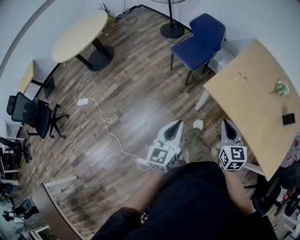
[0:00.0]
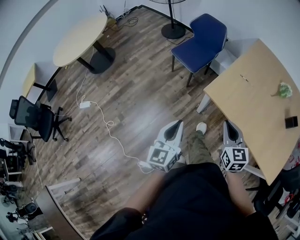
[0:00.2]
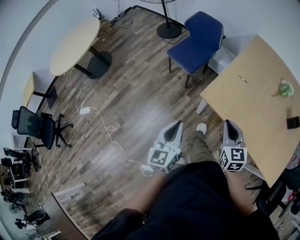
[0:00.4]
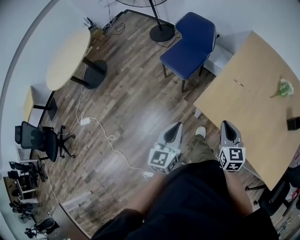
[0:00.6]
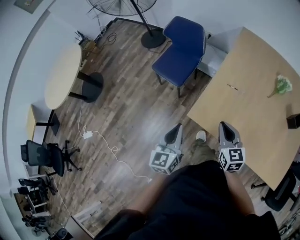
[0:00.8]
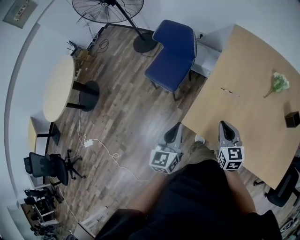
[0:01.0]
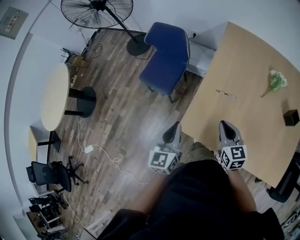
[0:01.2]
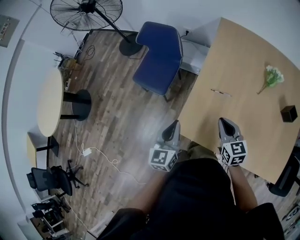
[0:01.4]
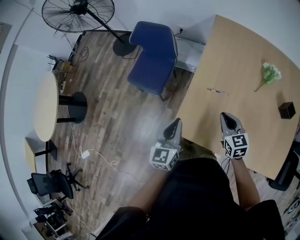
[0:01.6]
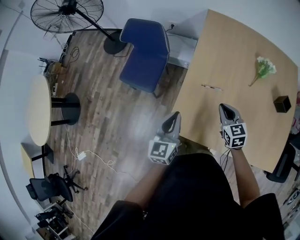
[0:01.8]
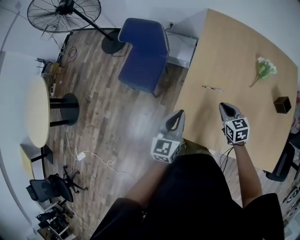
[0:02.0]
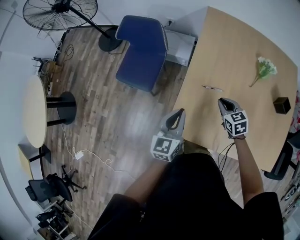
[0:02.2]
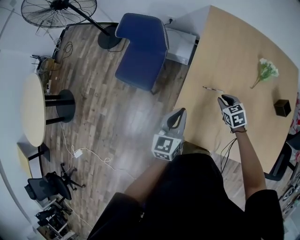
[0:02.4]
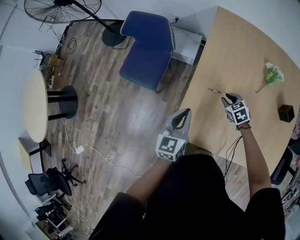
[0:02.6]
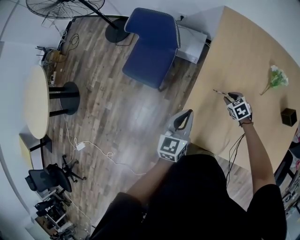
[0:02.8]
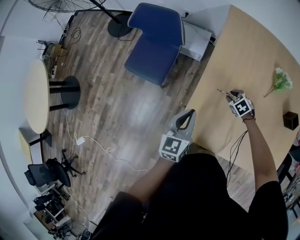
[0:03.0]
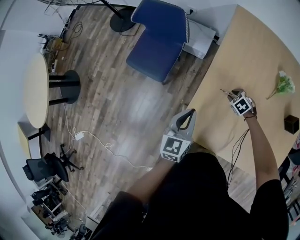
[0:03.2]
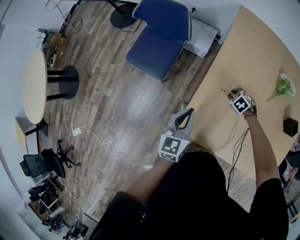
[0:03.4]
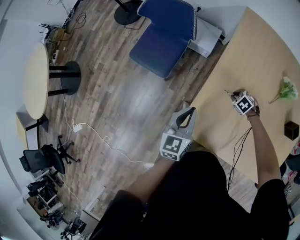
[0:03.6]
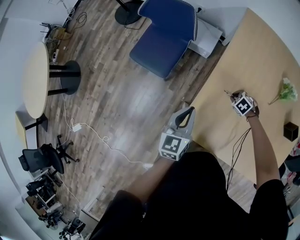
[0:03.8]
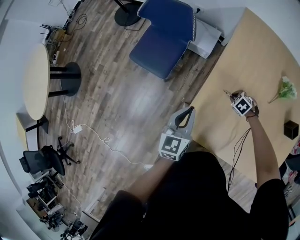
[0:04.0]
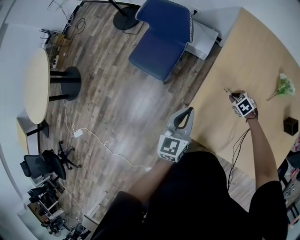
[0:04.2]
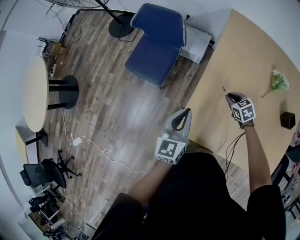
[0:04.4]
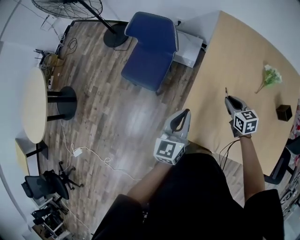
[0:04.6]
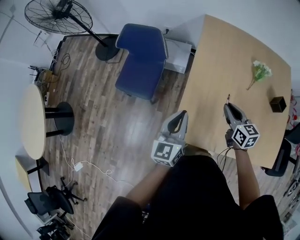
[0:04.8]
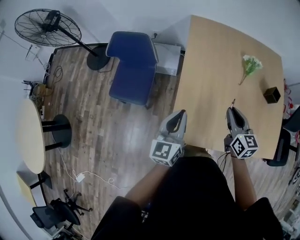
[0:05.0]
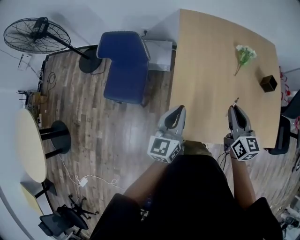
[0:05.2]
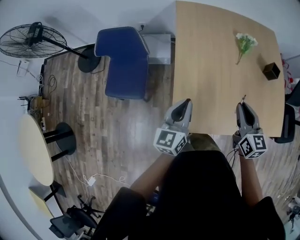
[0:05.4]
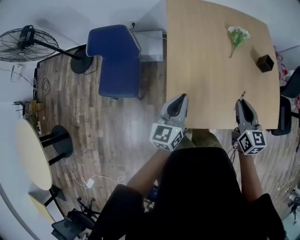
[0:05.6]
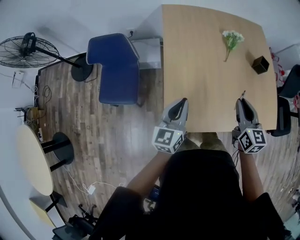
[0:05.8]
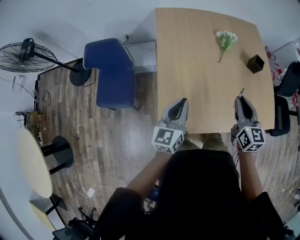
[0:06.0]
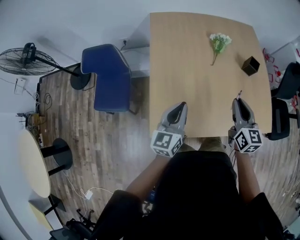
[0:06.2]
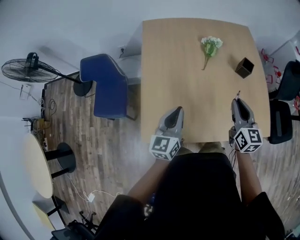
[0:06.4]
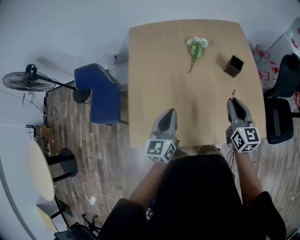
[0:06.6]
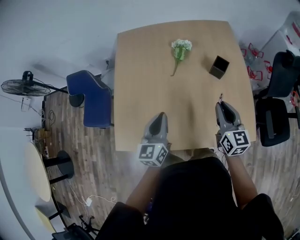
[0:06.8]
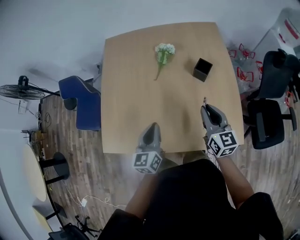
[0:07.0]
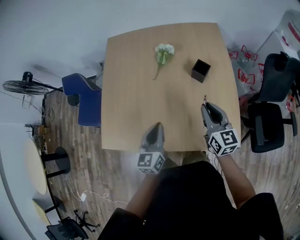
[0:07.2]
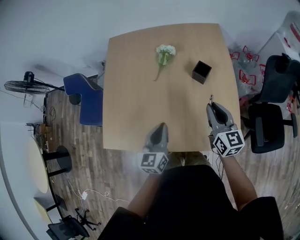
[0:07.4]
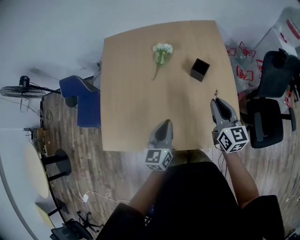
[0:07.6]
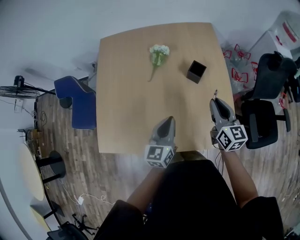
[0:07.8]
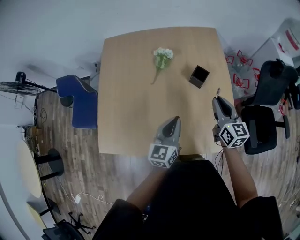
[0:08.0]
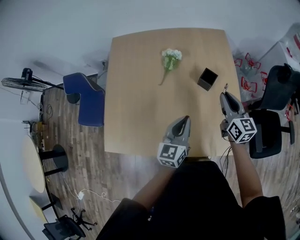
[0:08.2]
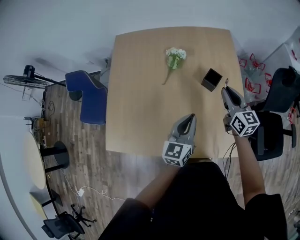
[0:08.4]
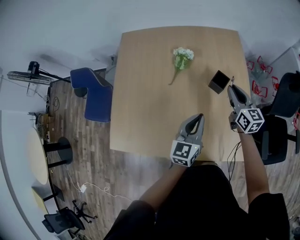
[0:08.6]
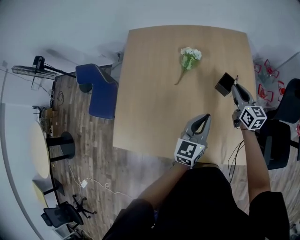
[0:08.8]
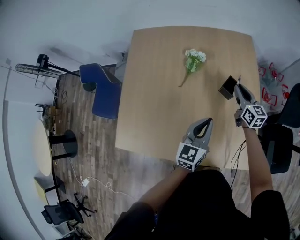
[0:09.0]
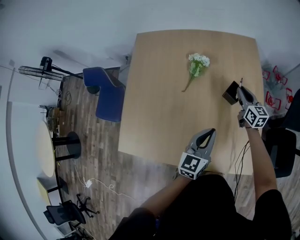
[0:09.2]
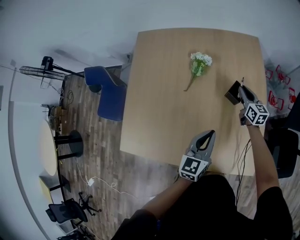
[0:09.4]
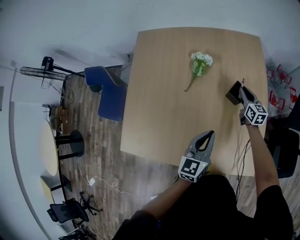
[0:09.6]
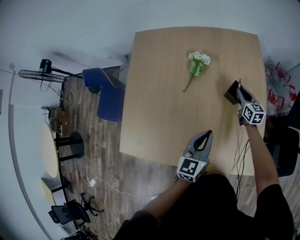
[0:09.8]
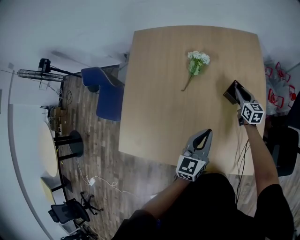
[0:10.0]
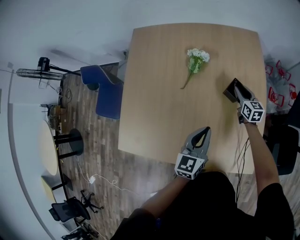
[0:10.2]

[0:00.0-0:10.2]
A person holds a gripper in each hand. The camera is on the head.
0:00.0 to 0:01.4: The two grippers travel together, forward and to the right, some 50 cm.
0:01.4 to 0:03.0: The right gripper moves downward and forward, about 30 cm, angles its fingers downward, by roughly 40 degrees, and opens up; the left gripper is displaced forward and downward by some 15 cm.
0:03.0 to 0:04.4: The left gripper moves roughly 5 cm; the right gripper goes roughly 10 cm upward.
0:04.4 to 0:05.8: The left gripper changes place by some 10 cm, and swivels approximately 30 degrees. The right gripper goes about 25 cm upward, and angles its fingers upward, by some 40 degrees.
0:05.8 to 0:07.2: Both grippers are carried to the right, approximately 50 cm.
0:07.2 to 0:08.8: The right gripper is displaced forward by approximately 20 cm, while the left gripper is displaced forward and to the right by approximately 15 cm.
0:08.8 to 0:10.2: The right gripper heads downward and forward, covering approximately 15 cm.

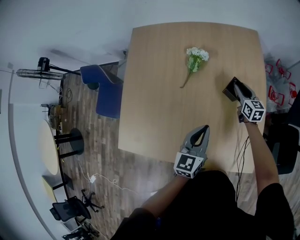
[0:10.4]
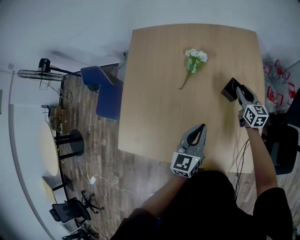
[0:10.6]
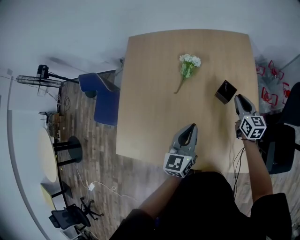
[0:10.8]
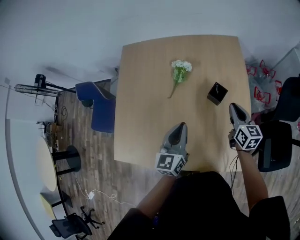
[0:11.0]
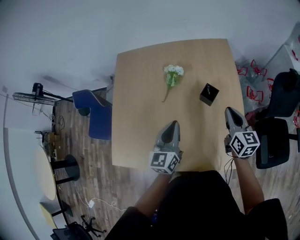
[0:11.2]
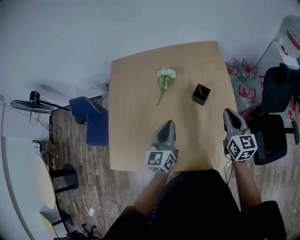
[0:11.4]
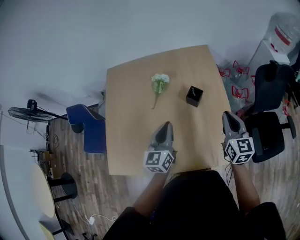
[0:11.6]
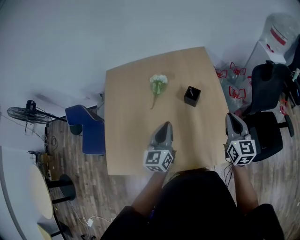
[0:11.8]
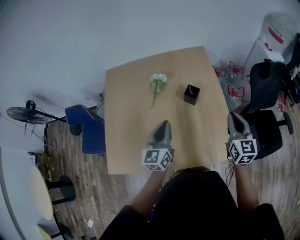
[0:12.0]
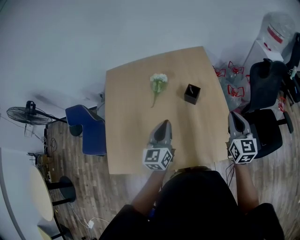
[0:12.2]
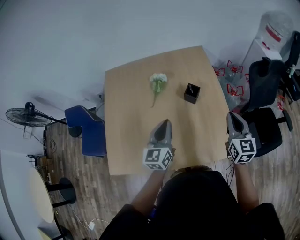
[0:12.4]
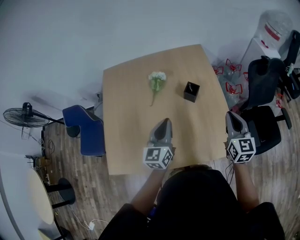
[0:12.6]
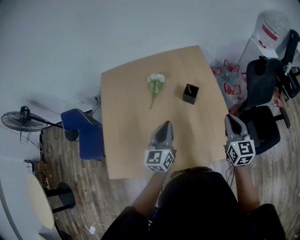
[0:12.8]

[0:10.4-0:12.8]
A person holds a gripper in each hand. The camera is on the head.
0:10.4 to 0:11.6: The left gripper shifts about 10 cm upward. Meanwhile the right gripper moves upward and backward, some 35 cm, rotates about 20 degrees, and closes.
0:11.6 to 0:12.8: The right gripper heads backward, covering approximately 5 cm.

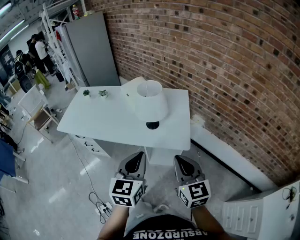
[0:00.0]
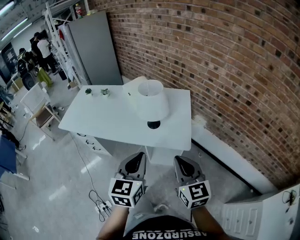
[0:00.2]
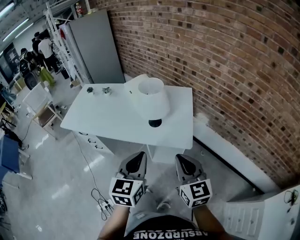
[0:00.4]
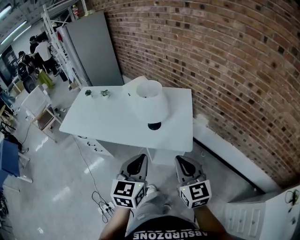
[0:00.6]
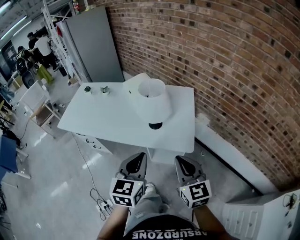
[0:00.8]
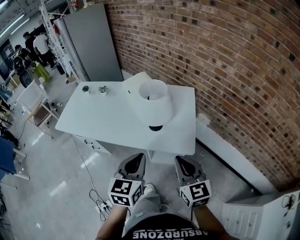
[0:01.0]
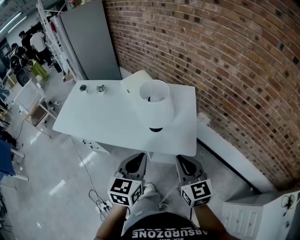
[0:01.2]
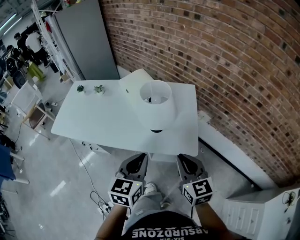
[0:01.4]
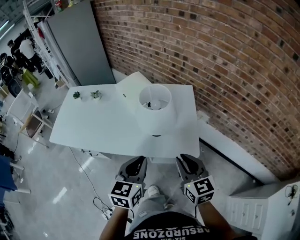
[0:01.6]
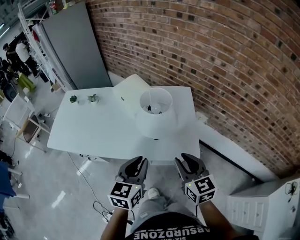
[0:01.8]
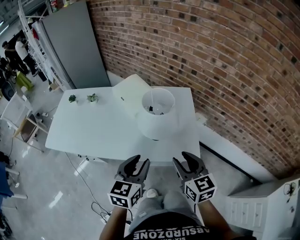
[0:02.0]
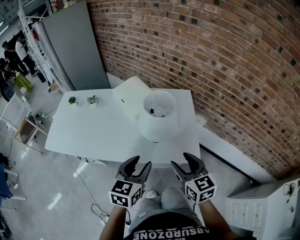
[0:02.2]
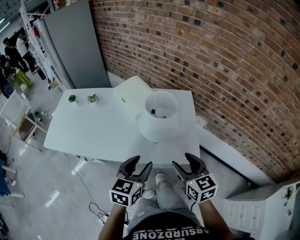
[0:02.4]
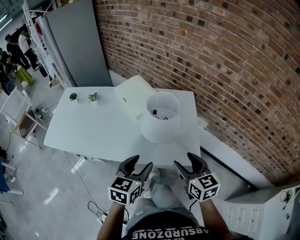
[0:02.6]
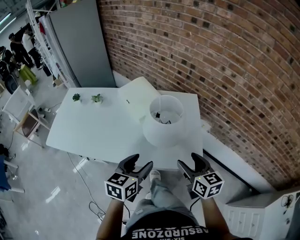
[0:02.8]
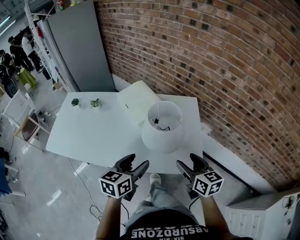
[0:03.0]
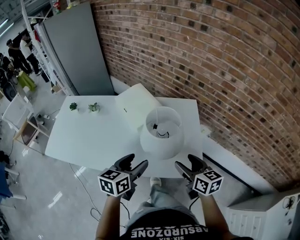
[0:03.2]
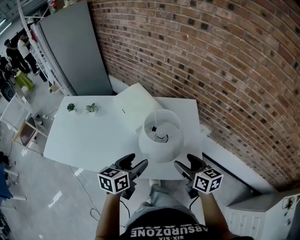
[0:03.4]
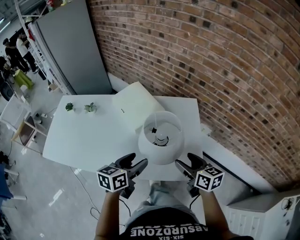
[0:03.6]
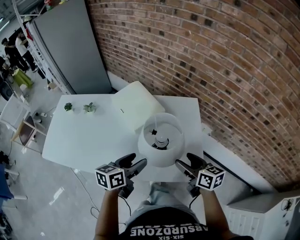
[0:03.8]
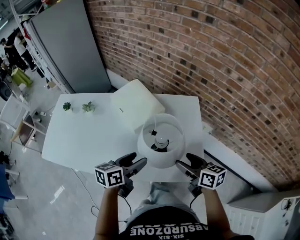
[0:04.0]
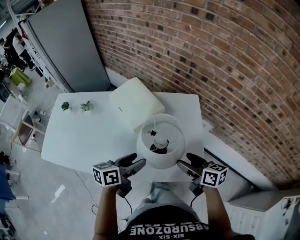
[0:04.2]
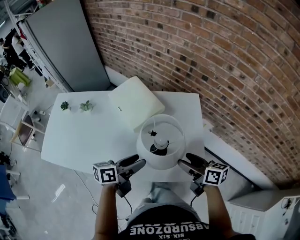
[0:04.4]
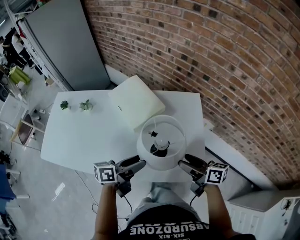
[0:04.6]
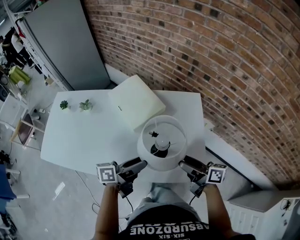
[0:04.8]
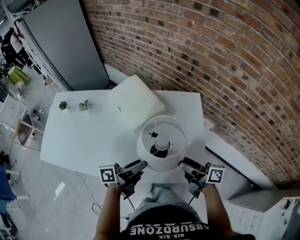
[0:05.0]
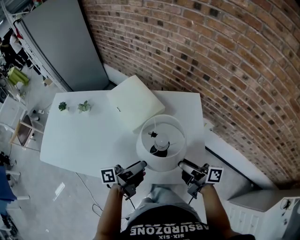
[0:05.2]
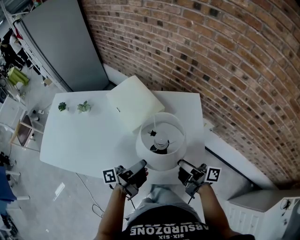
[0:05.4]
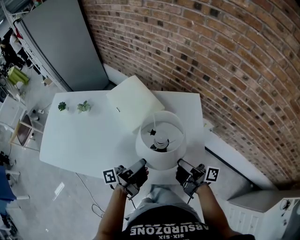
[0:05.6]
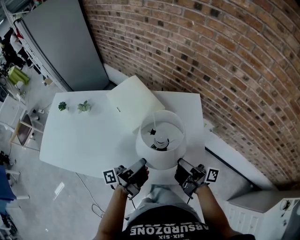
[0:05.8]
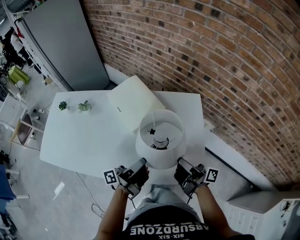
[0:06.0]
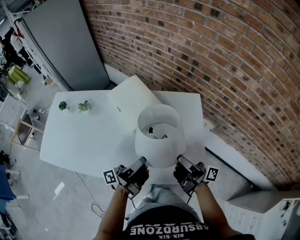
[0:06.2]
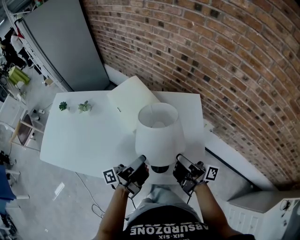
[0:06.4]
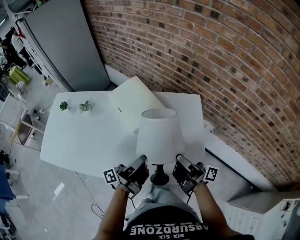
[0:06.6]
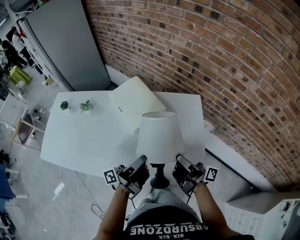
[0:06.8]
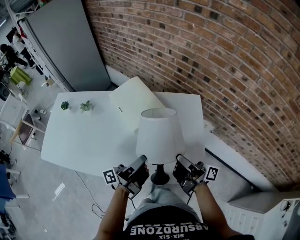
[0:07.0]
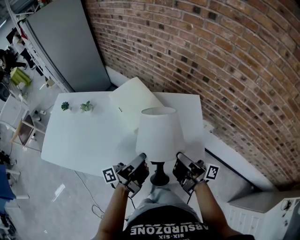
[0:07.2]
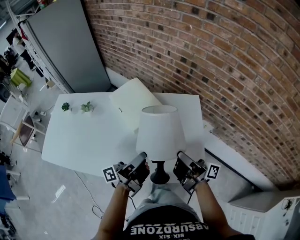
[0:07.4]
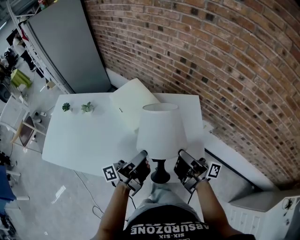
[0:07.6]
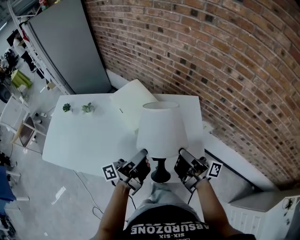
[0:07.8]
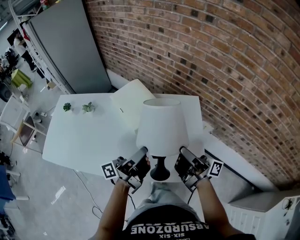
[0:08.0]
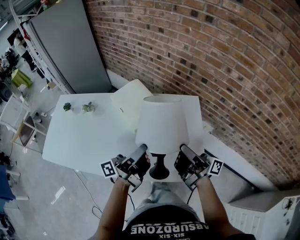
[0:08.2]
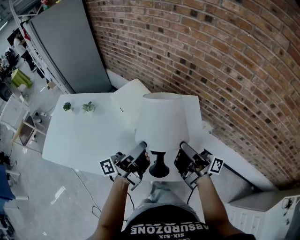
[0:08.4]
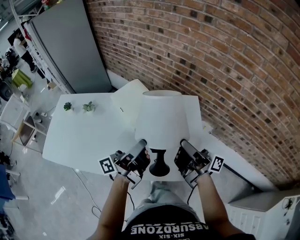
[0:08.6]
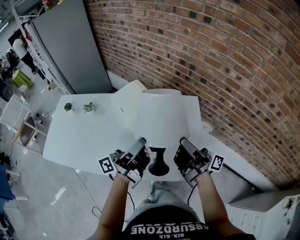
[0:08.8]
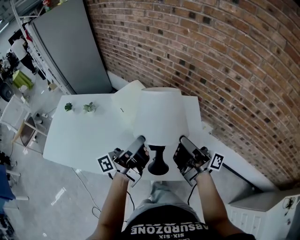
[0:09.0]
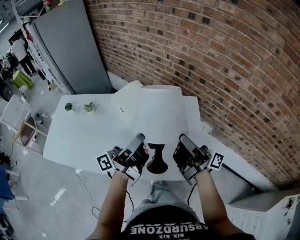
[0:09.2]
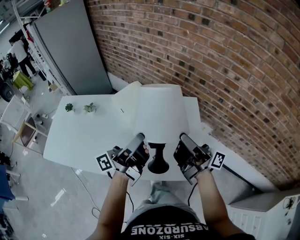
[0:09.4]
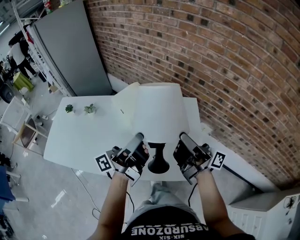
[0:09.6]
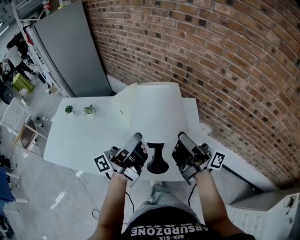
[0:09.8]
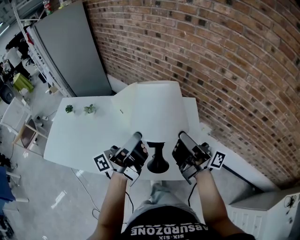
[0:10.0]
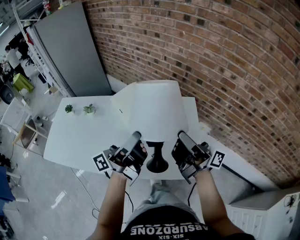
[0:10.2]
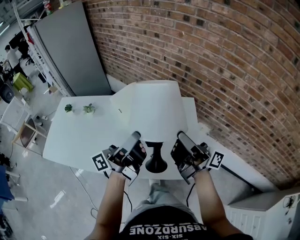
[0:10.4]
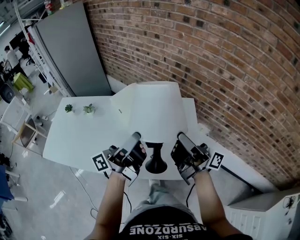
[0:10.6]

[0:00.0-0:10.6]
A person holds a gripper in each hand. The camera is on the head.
0:00.0 to 0:01.6: Both grippers move forward and downward, approximately 15 cm.
0:01.6 to 0:03.0: The right gripper goes roughly 10 cm forward, and opens its fingers, while the left gripper heads forward and to the left, covering some 10 cm, and opens.
0:03.0 to 0:04.6: Both grippers move forward and downward, about 10 cm. The left gripper rotates some 40 degrees. Meanwhile the right gripper changes its angle by about 30 degrees.
0:04.6 to 0:06.0: The left gripper changes its angle by roughly 40 degrees, while the right gripper tips its fingers upward by some 30 degrees, and closes its fingers.
0:06.0 to 0:07.6: Both grippers move upward, roughly 5 cm. The left gripper closes its fingers.
0:07.6 to 0:09.0: The two grippers go about 5 cm upward.
0:09.0 to 0:10.6: The right gripper shifts approximately 5 cm upward; the left gripper shifts by about 5 cm.
